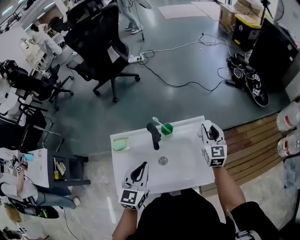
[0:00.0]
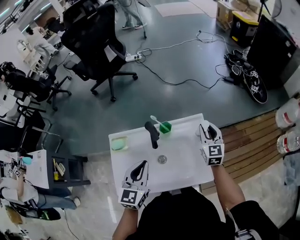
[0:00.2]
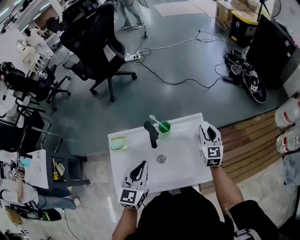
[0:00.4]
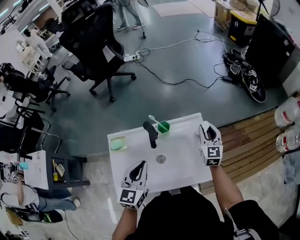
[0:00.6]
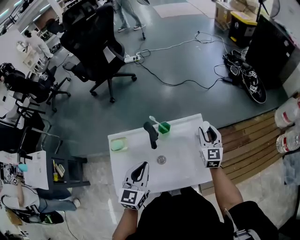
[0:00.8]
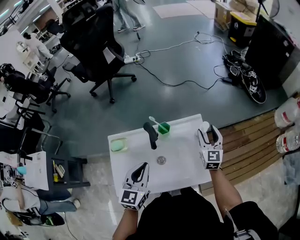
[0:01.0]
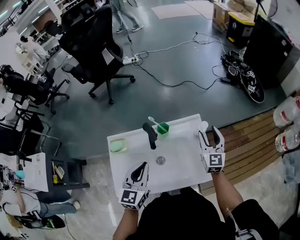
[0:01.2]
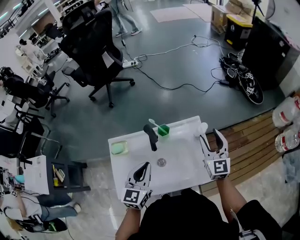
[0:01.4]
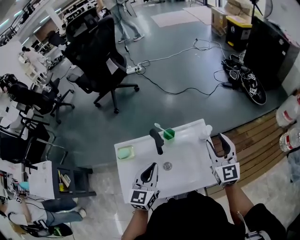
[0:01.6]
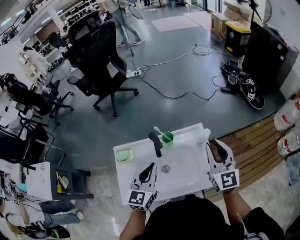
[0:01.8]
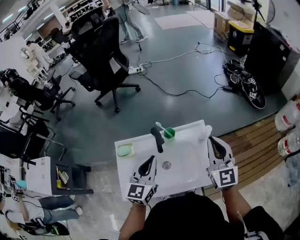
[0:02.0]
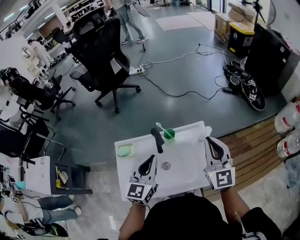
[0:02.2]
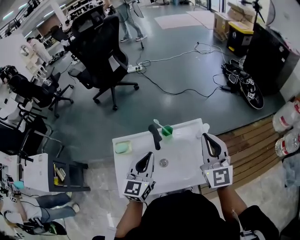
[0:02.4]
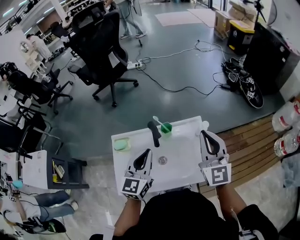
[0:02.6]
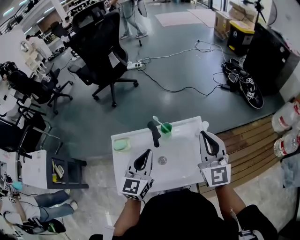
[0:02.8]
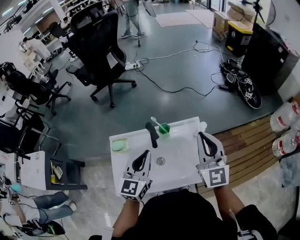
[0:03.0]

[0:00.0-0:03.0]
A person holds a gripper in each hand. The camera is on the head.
0:00.0 to 0:01.6: The right gripper shifts some 15 cm upward and backward.
0:01.6 to 0:03.0: The right gripper shifts some 10 cm upward and to the left, and closes up.

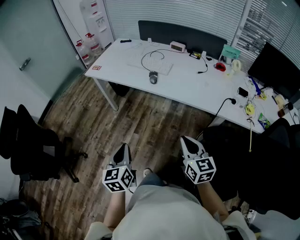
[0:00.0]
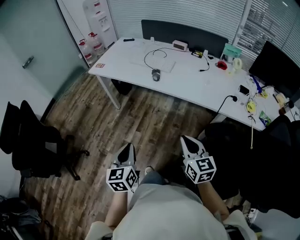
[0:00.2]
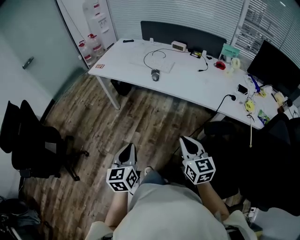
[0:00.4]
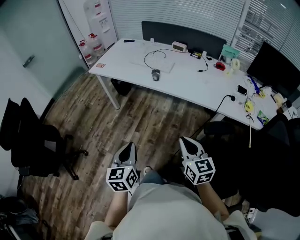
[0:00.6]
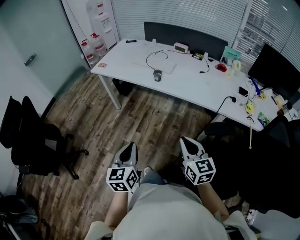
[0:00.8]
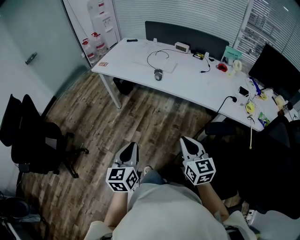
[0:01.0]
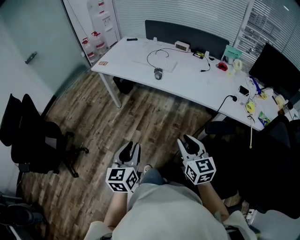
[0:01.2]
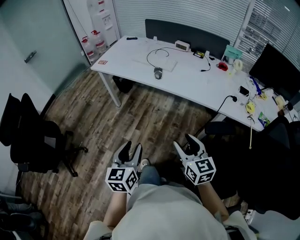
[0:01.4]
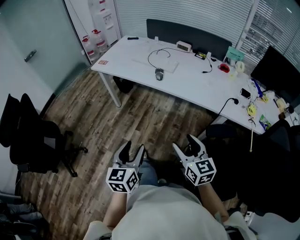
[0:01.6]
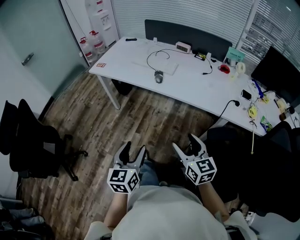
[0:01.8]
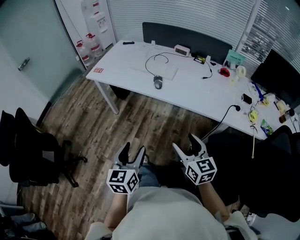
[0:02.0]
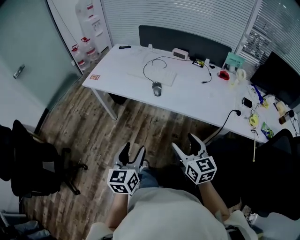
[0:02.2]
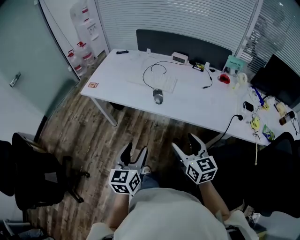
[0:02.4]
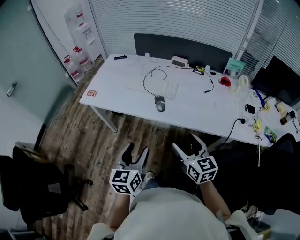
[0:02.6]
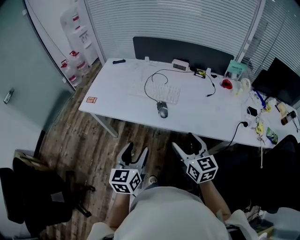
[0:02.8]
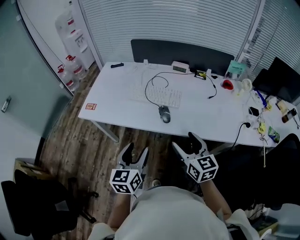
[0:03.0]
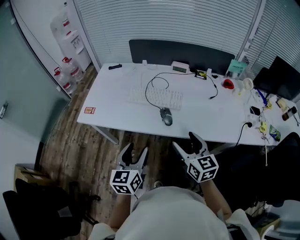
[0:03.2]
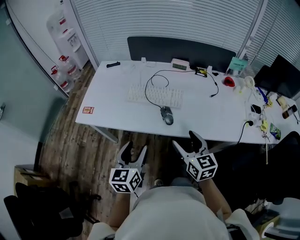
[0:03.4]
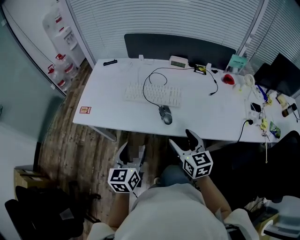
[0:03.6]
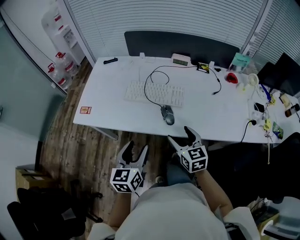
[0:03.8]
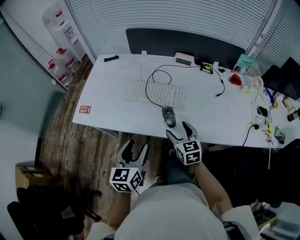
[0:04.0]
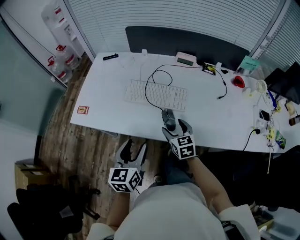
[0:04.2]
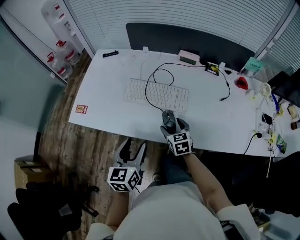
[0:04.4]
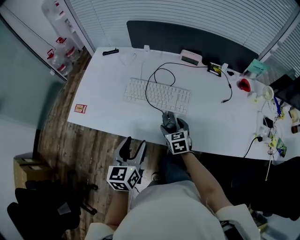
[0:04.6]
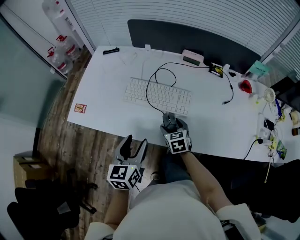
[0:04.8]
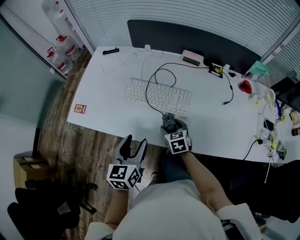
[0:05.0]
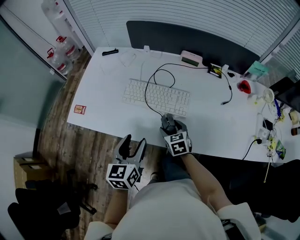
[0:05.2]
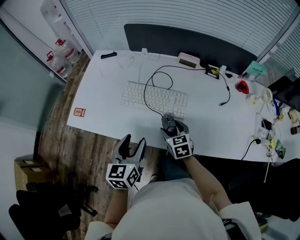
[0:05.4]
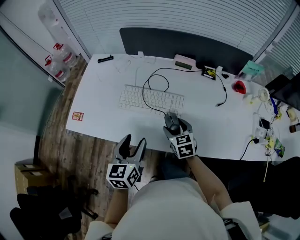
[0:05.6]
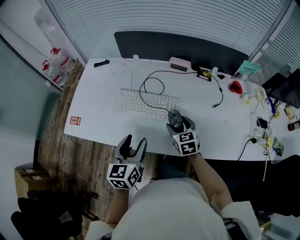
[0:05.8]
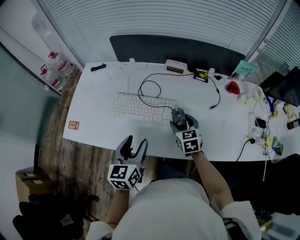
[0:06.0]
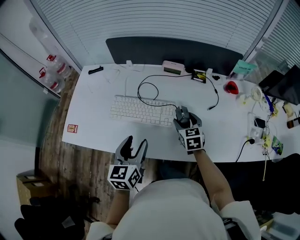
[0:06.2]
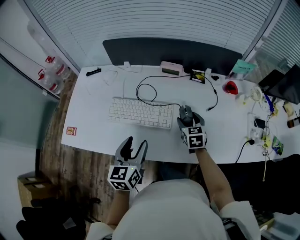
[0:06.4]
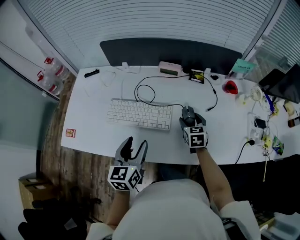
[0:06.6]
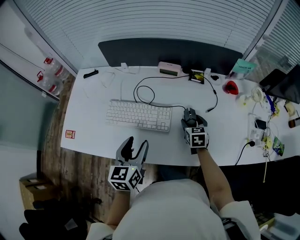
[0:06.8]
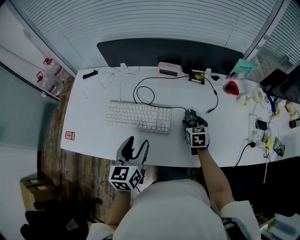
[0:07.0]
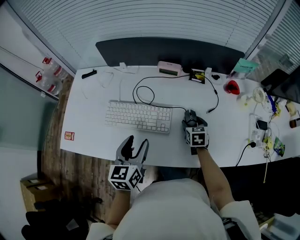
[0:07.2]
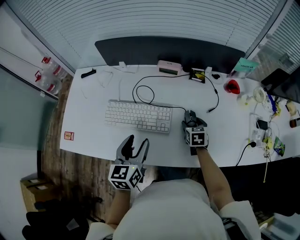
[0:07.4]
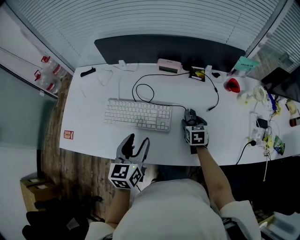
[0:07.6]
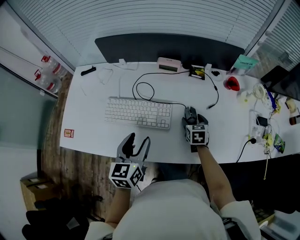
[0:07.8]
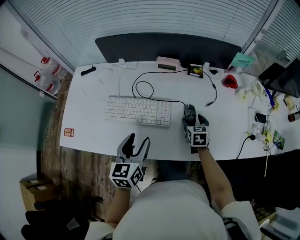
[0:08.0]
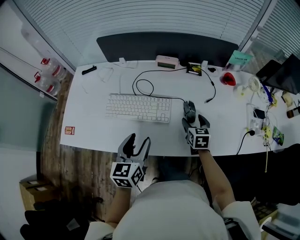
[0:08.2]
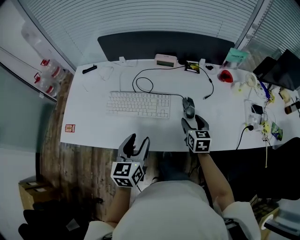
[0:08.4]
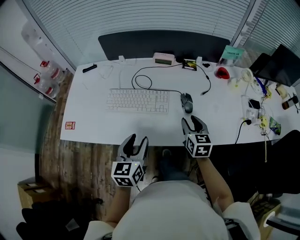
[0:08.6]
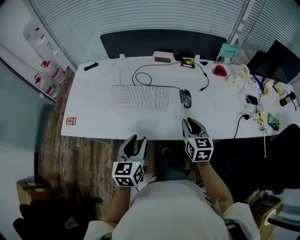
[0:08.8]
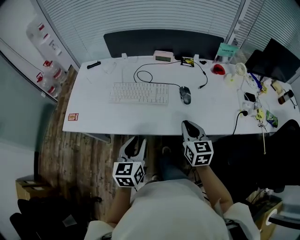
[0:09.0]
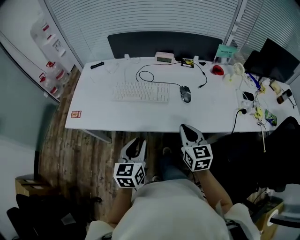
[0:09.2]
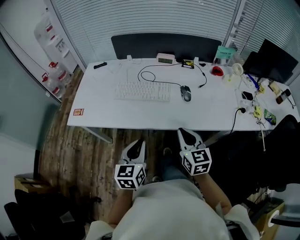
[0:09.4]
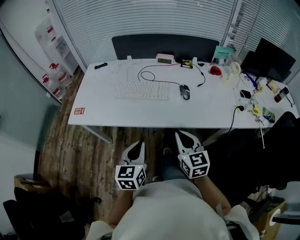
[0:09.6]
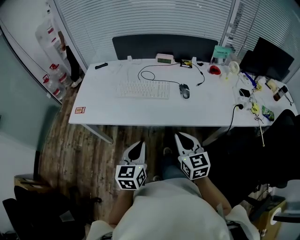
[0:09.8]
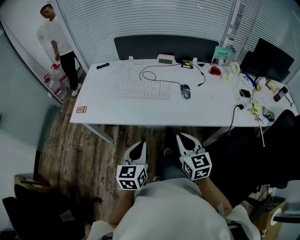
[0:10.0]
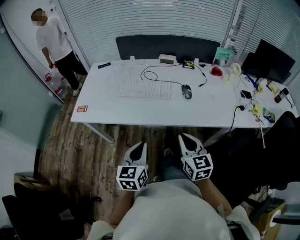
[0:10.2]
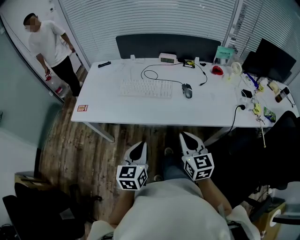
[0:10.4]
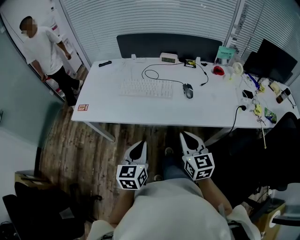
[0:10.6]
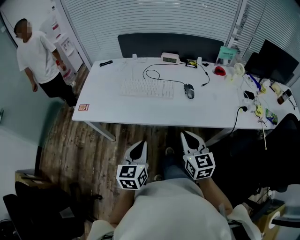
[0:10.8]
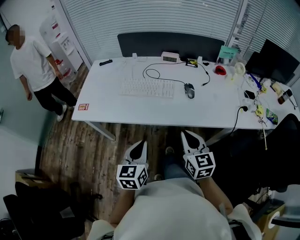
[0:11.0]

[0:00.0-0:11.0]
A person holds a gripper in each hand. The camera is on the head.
0:00.0 to 0:01.6: The right gripper opens up, while the left gripper ends up some 5 cm from where it was, and opens its fingers.
0:01.6 to 0:03.2: Both grippers travel together forward, some 35 cm.
0:03.2 to 0:04.8: The right gripper moves downward and forward, roughly 30 cm, and swivels roughly 30 degrees. Meanwhile the left gripper moves forward, roughly 15 cm.
0:04.8 to 0:06.2: The left gripper moves to the right and forward, roughly 10 cm; the right gripper travels to the right, upward and forward by some 20 cm.
0:06.2 to 0:07.8: The left gripper ends up about 5 cm from where it was. The right gripper shifts roughly 10 cm downward and to the right.
0:07.8 to 0:09.4: The left gripper moves backward, roughly 25 cm, and closes. Meanwhile the right gripper shifts about 35 cm backward and upward, turns by some 30 degrees, and closes.
0:09.4 to 0:11.0: The grippers move only a little.

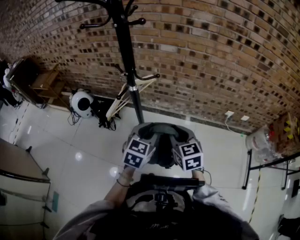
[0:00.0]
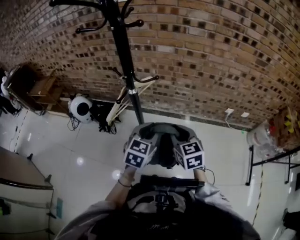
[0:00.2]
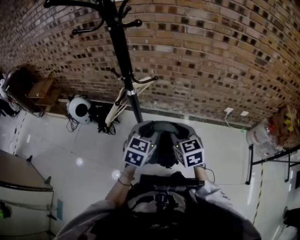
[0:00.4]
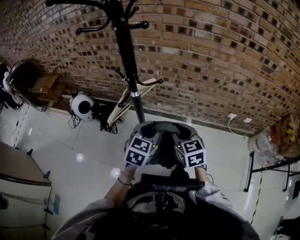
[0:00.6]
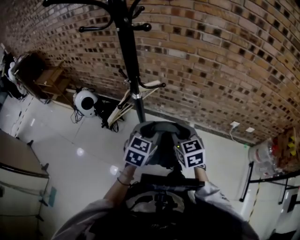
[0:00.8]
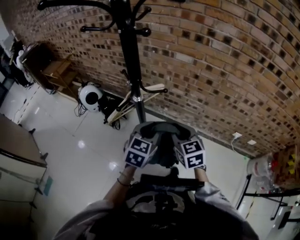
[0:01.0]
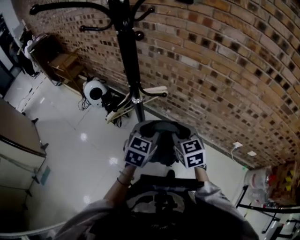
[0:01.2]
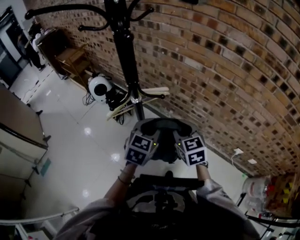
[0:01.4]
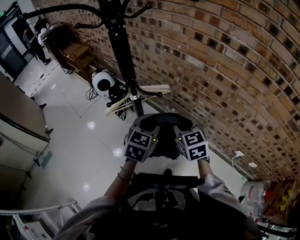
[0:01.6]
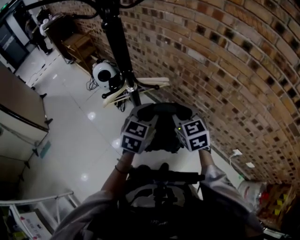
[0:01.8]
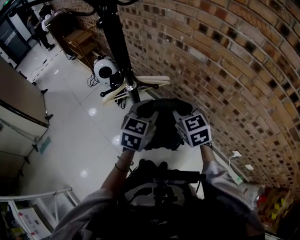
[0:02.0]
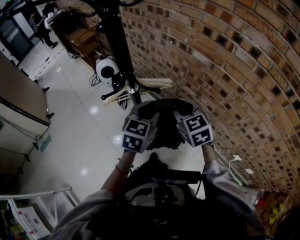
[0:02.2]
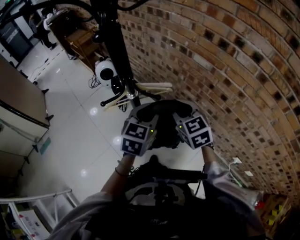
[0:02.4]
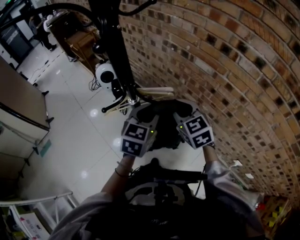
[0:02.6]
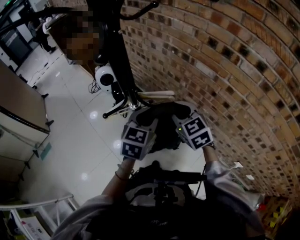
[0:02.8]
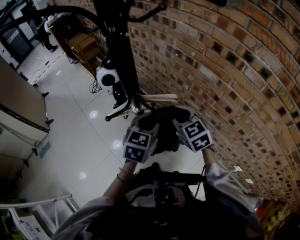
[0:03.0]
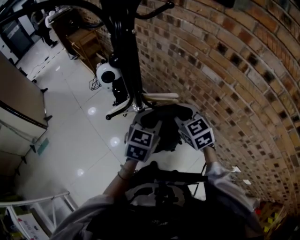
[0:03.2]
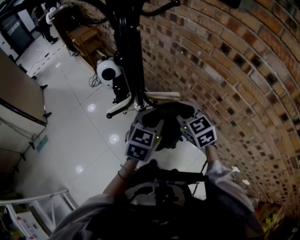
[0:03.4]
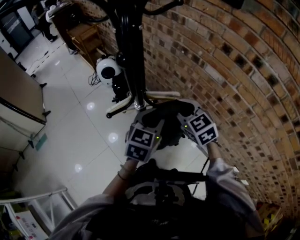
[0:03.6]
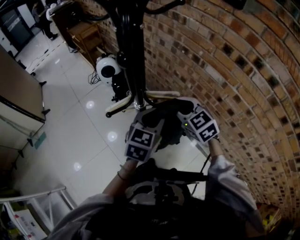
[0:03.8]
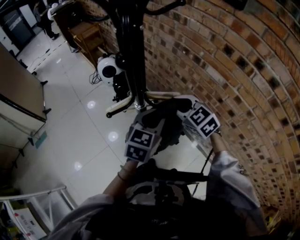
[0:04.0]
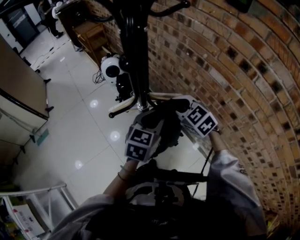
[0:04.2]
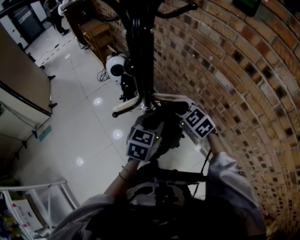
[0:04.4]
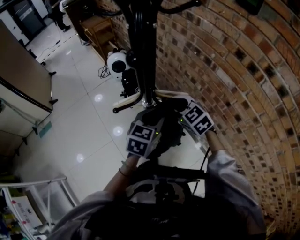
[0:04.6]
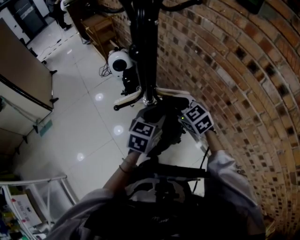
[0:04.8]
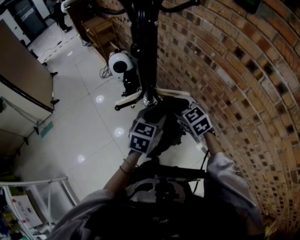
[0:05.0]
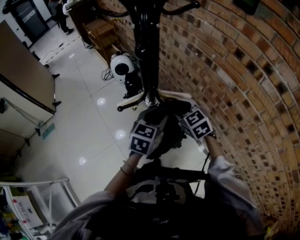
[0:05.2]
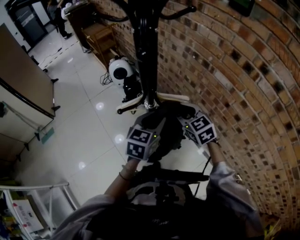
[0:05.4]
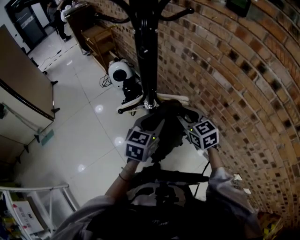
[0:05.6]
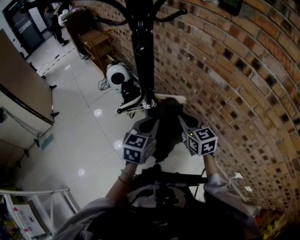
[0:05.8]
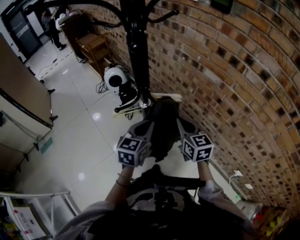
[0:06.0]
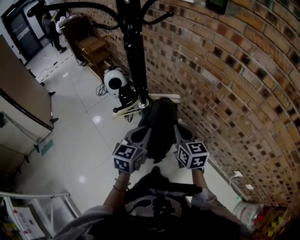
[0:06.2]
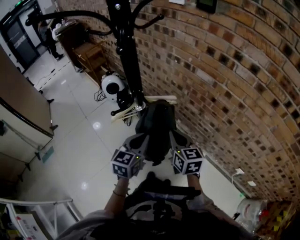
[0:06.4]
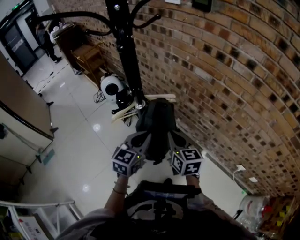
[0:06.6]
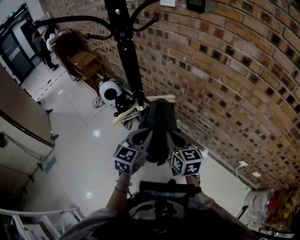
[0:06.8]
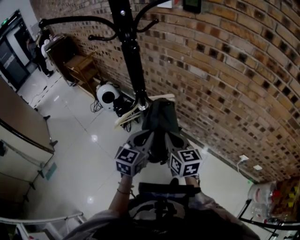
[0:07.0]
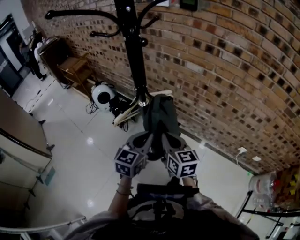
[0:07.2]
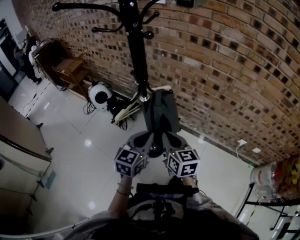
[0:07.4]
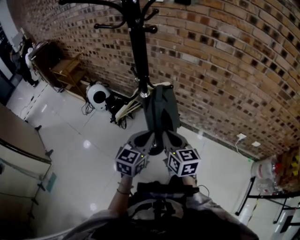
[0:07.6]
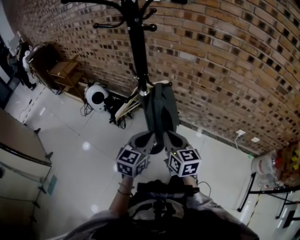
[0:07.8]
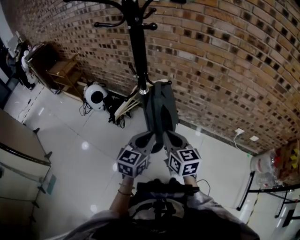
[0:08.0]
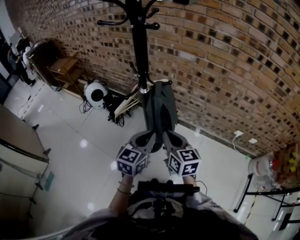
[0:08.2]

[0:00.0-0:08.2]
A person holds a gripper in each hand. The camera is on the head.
0:00.0 to 0:01.6: The left gripper shifts by some 15 cm, and rotates approximately 30 degrees, while the right gripper changes place by approximately 20 cm, and turns by some 30 degrees.
0:01.6 to 0:03.2: The grippers both shift forward by approximately 10 cm.
0:03.2 to 0:05.0: The right gripper moves about 5 cm.
0:05.0 to 0:06.6: Both grippers travel together backward, roughly 15 cm. The right gripper changes its angle by about 40 degrees. Meanwhile the left gripper closes.
0:06.6 to 0:08.2: The left gripper goes approximately 10 cm backward. Meanwhile the right gripper heads backward and to the left, covering some 15 cm.

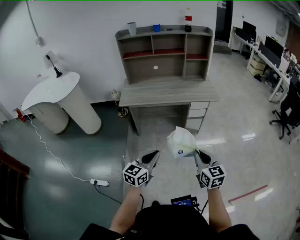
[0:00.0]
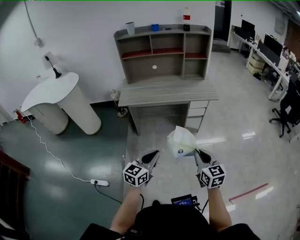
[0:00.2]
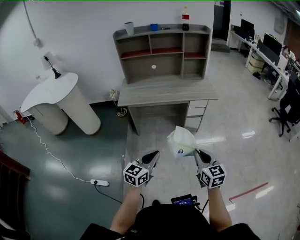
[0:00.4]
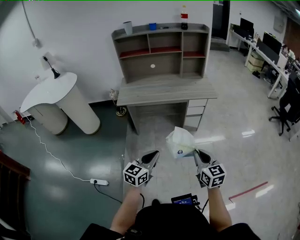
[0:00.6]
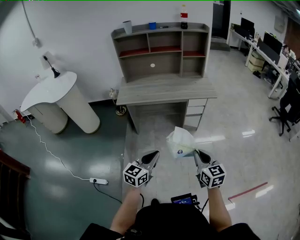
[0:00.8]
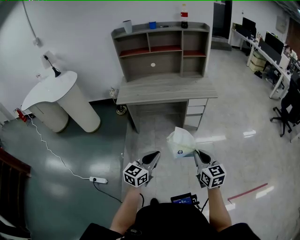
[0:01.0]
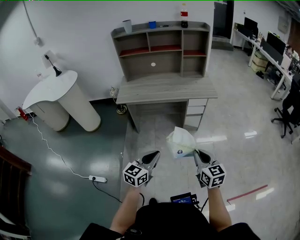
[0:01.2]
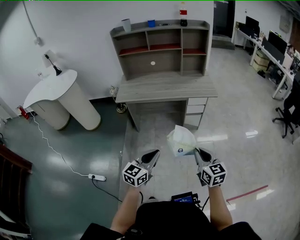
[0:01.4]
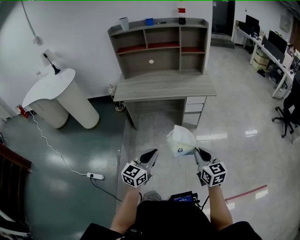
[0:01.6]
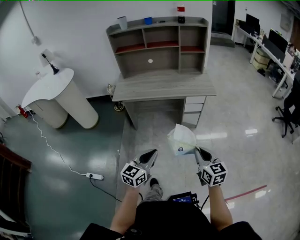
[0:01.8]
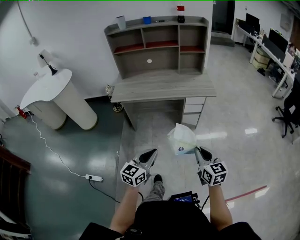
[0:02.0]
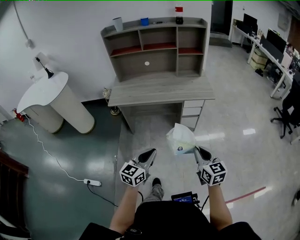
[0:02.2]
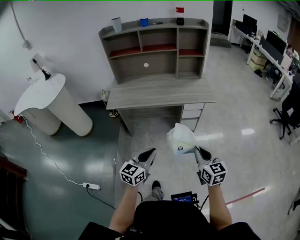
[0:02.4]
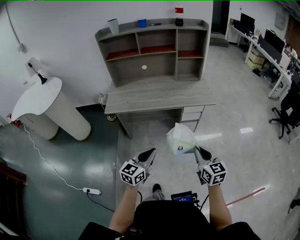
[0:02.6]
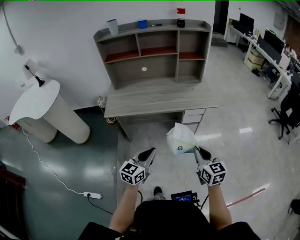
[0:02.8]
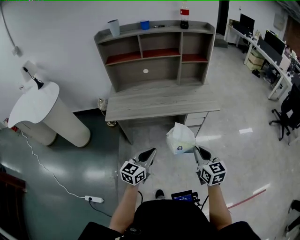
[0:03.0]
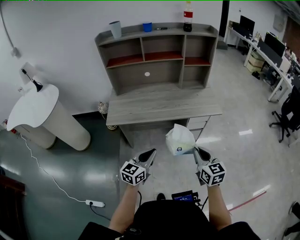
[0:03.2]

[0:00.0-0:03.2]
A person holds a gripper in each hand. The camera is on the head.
0:00.0 to 0:01.6: Both grippers travel together to the right, approximately 10 cm.
0:01.6 to 0:03.2: Both grippers move forward and to the left, approximately 25 cm.
